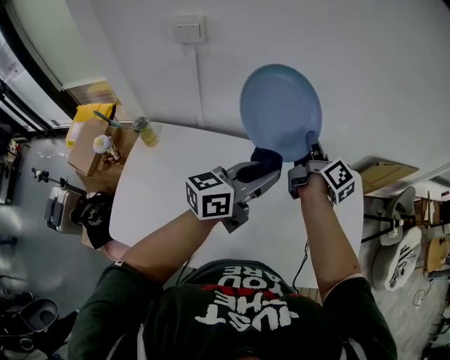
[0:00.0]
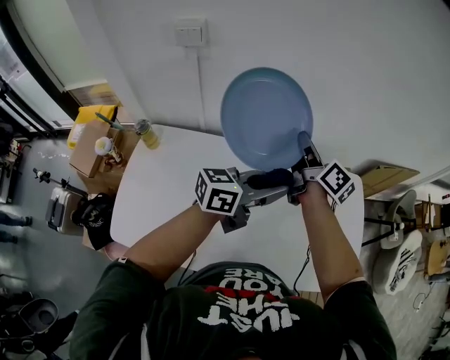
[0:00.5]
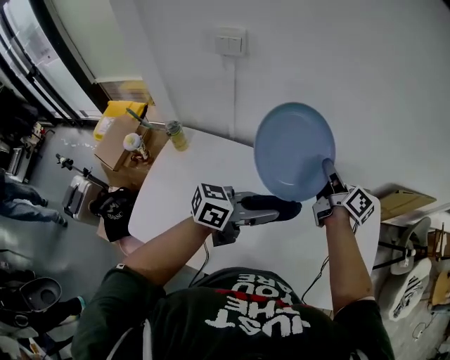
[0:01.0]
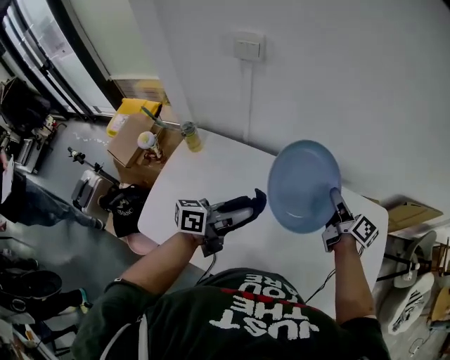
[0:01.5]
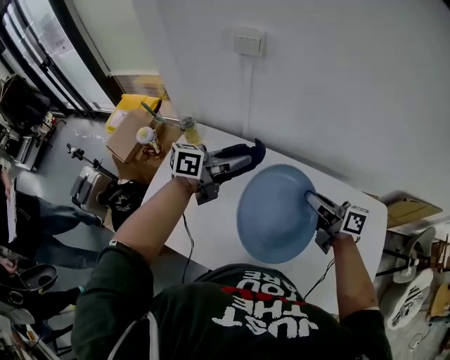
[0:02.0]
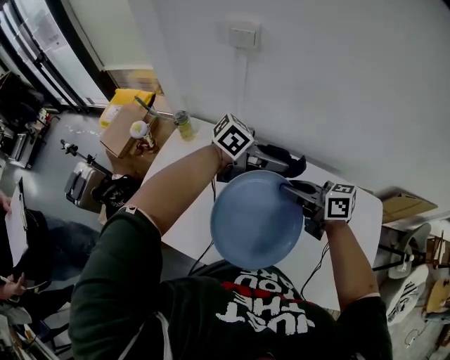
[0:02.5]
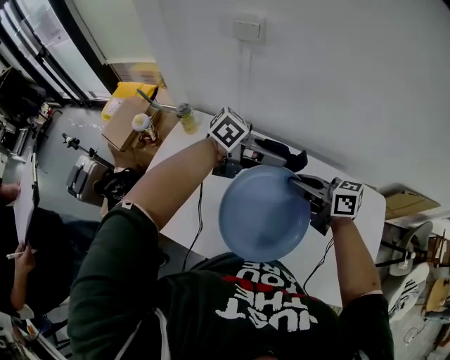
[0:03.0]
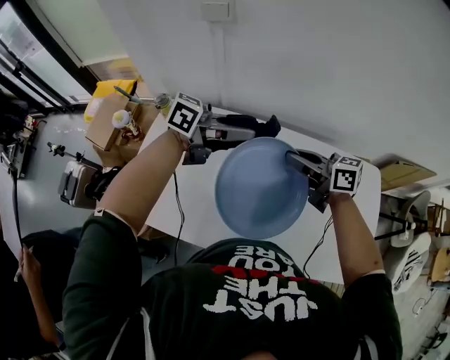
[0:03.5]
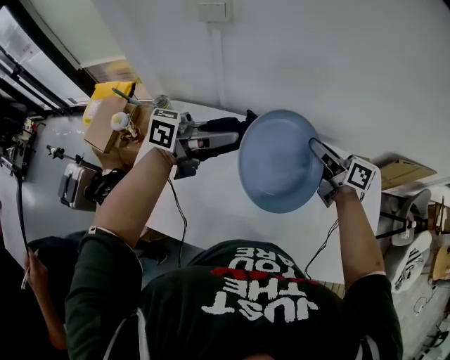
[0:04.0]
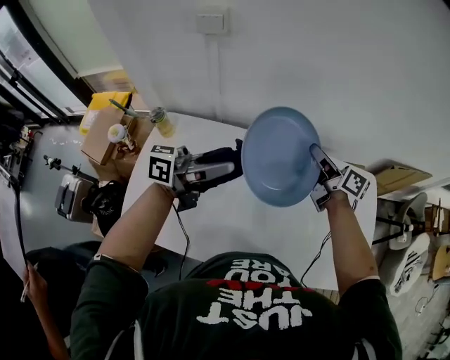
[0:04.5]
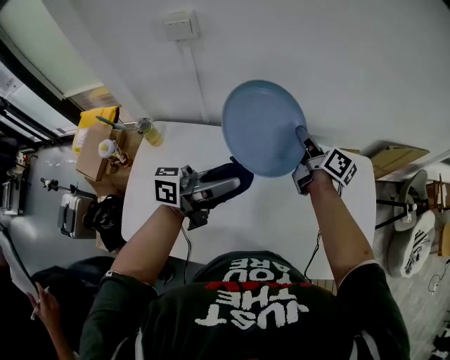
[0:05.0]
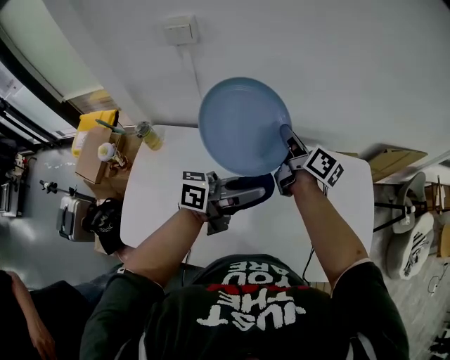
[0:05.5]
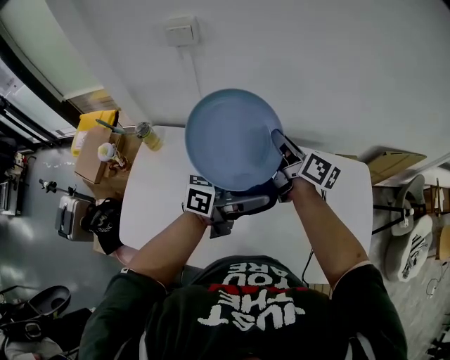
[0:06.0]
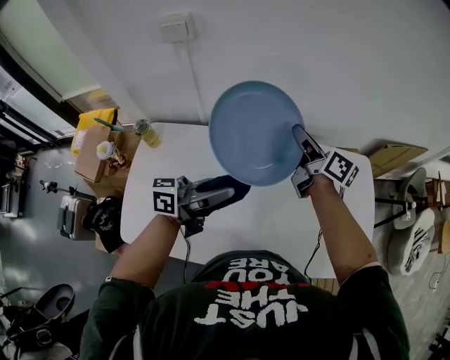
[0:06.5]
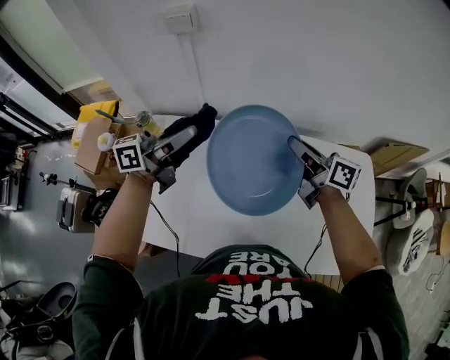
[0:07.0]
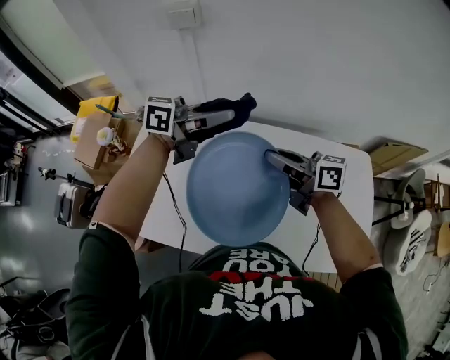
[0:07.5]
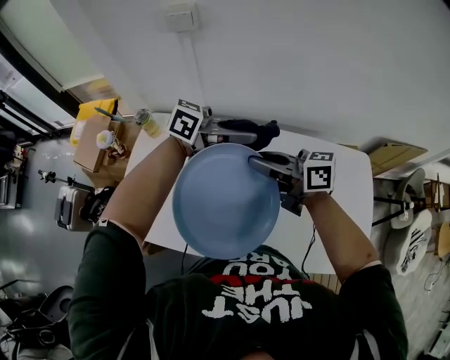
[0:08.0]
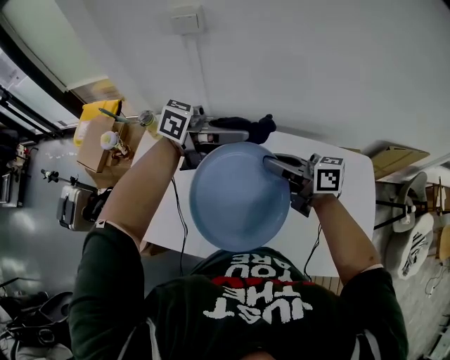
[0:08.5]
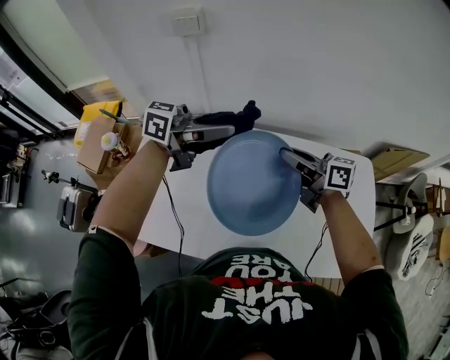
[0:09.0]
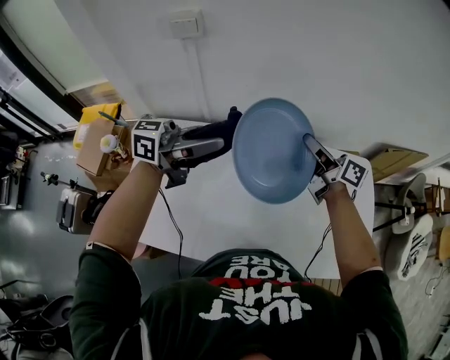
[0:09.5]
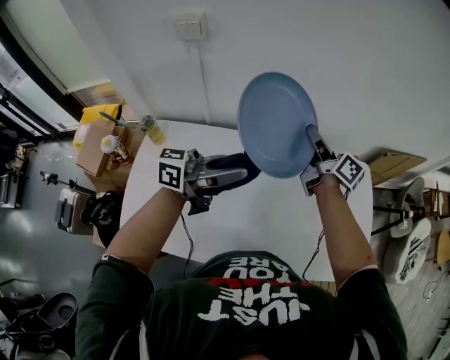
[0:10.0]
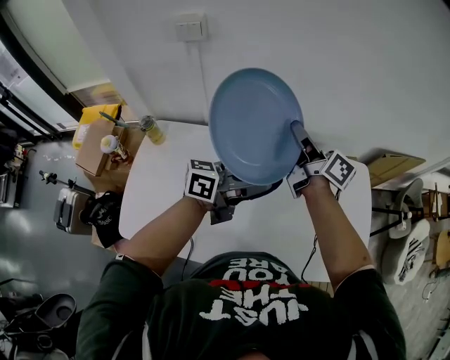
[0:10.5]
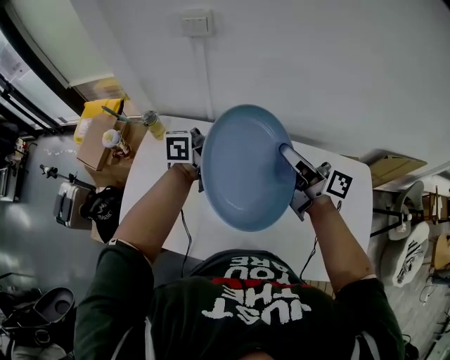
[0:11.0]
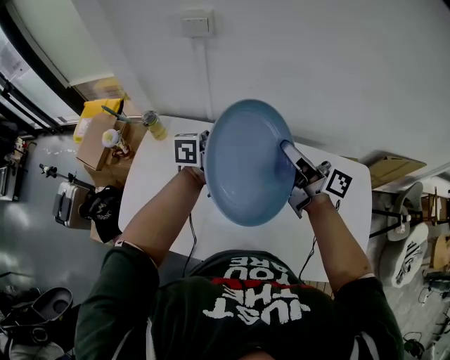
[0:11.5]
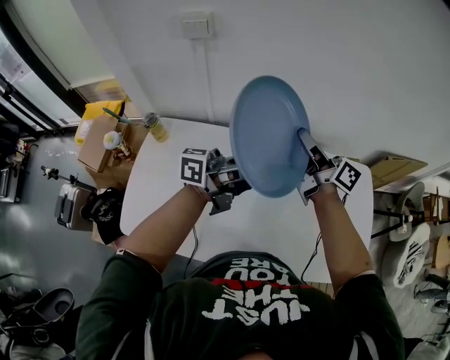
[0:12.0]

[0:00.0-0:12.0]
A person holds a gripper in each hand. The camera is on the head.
0:00.0 to 0:02.0: The left gripper moves roughly 20 cm. Meanwhile the right gripper changes place by roughly 15 cm, and turns by approximately 60 degrees.
0:02.0 to 0:04.0: The right gripper moves about 10 cm.
0:04.0 to 0:06.0: The right gripper moves approximately 5 cm, and changes its angle by roughly 20 degrees, while the left gripper changes place by approximately 15 cm.
0:06.0 to 0:08.0: The right gripper changes place by roughly 15 cm, and changes its angle by approximately 40 degrees.
0:08.0 to 0:10.0: The right gripper moves some 20 cm, and swivels approximately 50 degrees, while the left gripper moves approximately 10 cm.
0:10.0 to 0:12.0: The left gripper moves left and right over some 10 cm, changing direction 2 times.

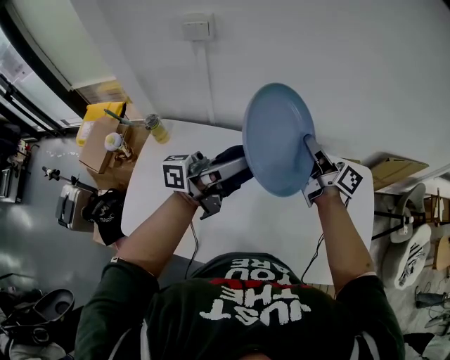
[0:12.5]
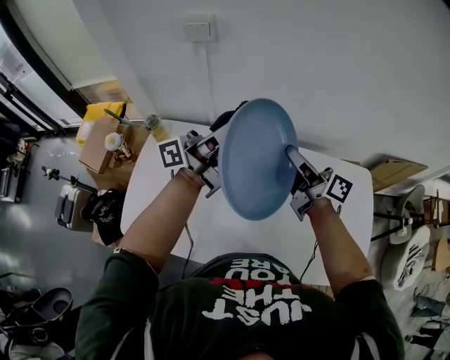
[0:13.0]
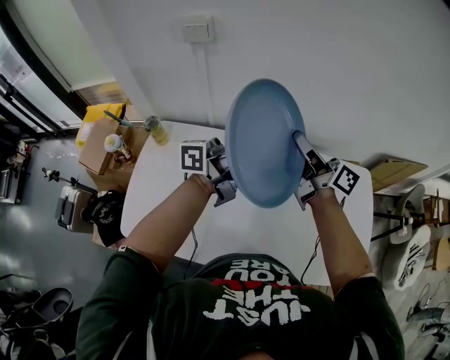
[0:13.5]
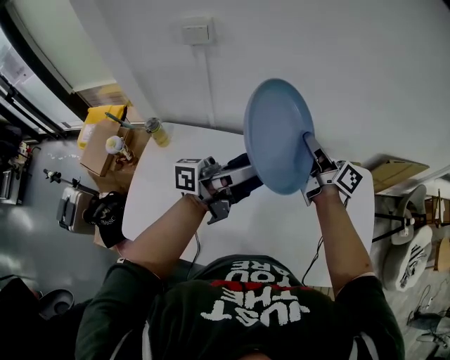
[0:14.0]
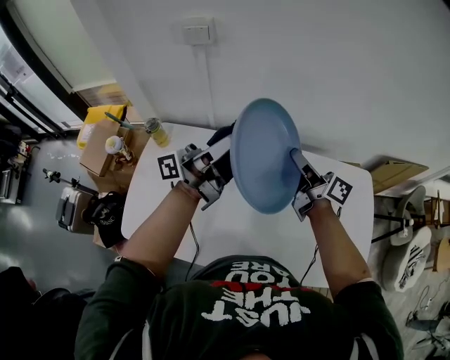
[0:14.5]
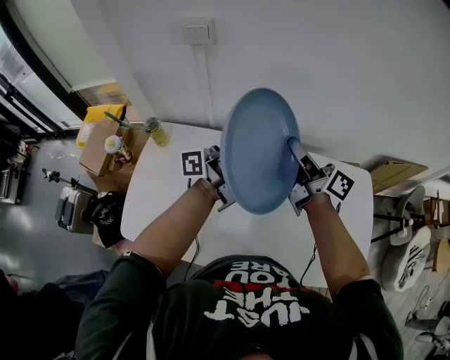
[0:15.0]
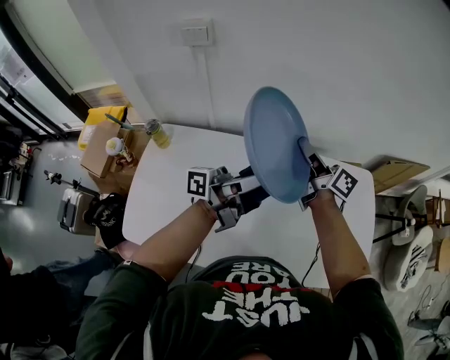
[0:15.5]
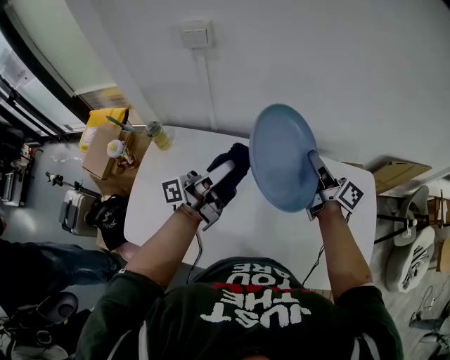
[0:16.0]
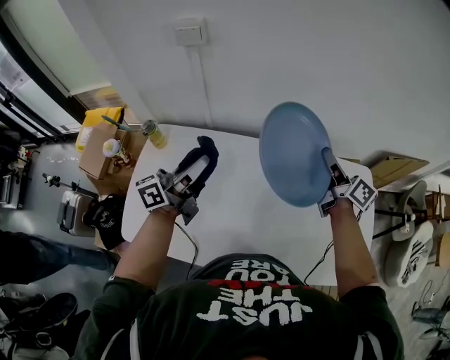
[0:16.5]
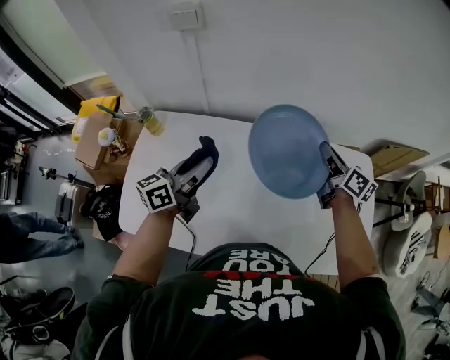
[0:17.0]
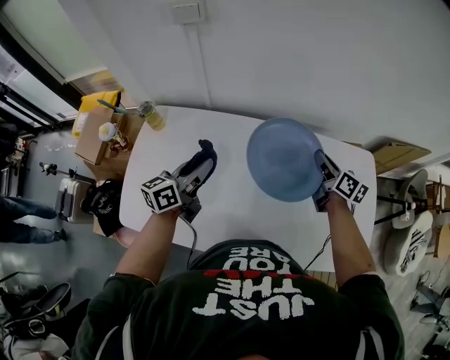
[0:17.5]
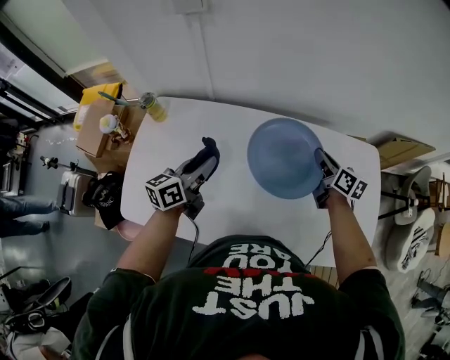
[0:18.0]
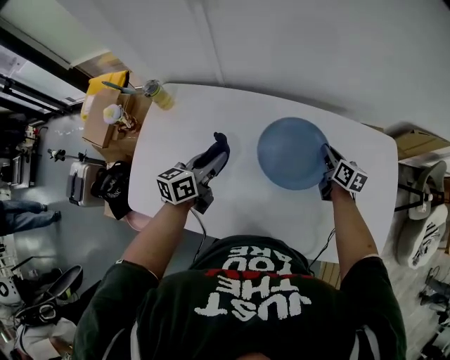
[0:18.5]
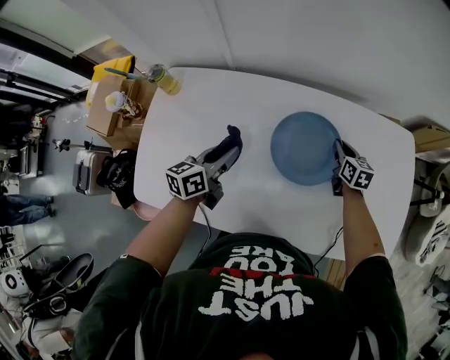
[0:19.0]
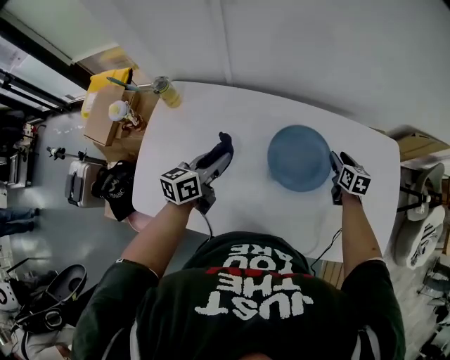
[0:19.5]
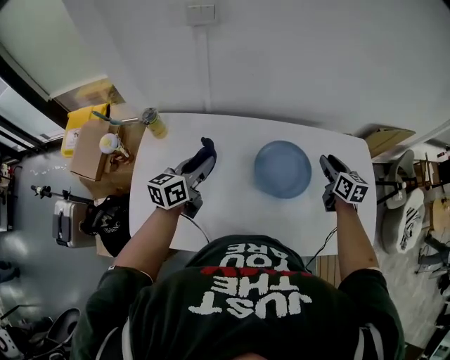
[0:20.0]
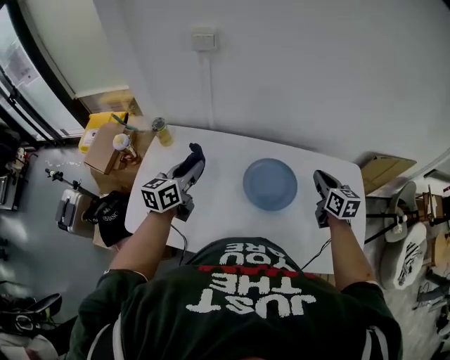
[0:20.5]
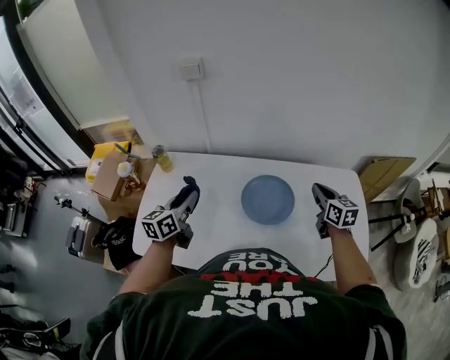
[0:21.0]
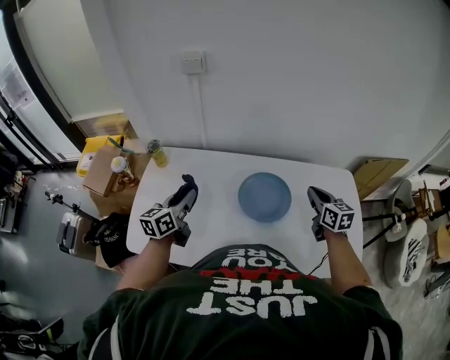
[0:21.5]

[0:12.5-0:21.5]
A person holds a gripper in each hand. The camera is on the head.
0:12.5 to 0:14.5: The right gripper goes forward and backward, about 5 cm each way, reversing 2 times; the left gripper moves left and right over about 5 cm, changing direction 2 times.
0:14.5 to 0:17.0: The right gripper goes approximately 10 cm to the right, and changes its angle by some 30 degrees. The left gripper shifts roughly 15 cm downward, travels to the right and back again, about 10 cm each way, and tilts its fingers some 40 degrees downward.
0:17.0 to 0:19.5: The left gripper travels downward by some 15 cm; the right gripper travels downward by about 20 cm, tips its fingers downward by roughly 30 degrees, and opens.
0:19.5 to 0:21.5: The left gripper travels upward by roughly 10 cm; the right gripper moves upward and backward, about 20 cm, and closes up.

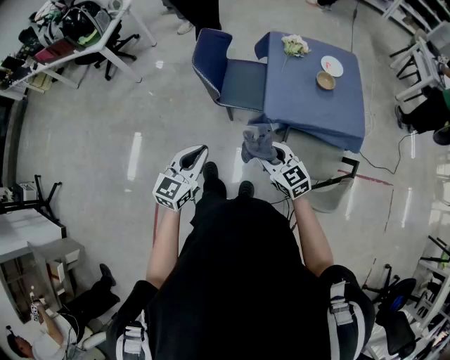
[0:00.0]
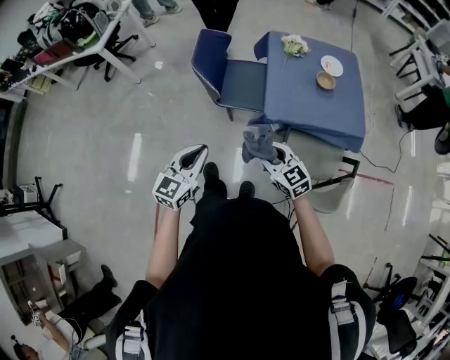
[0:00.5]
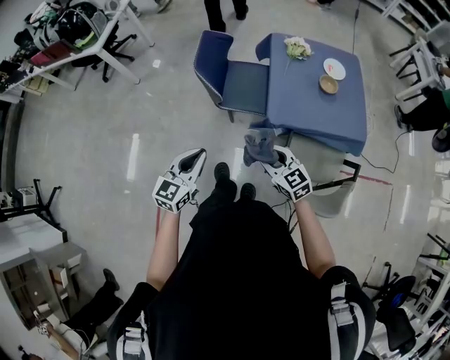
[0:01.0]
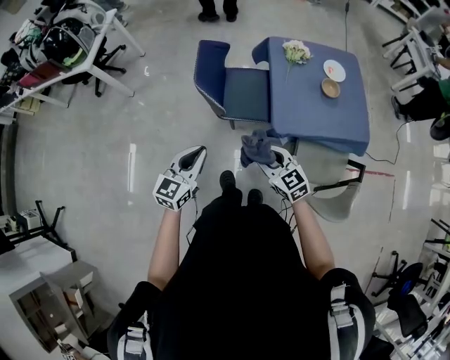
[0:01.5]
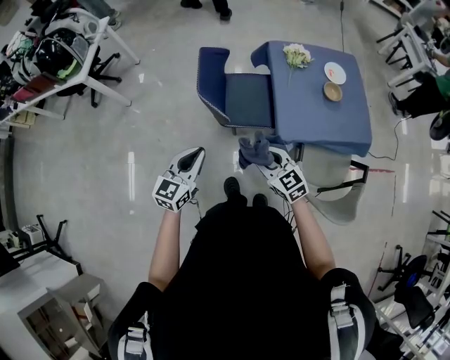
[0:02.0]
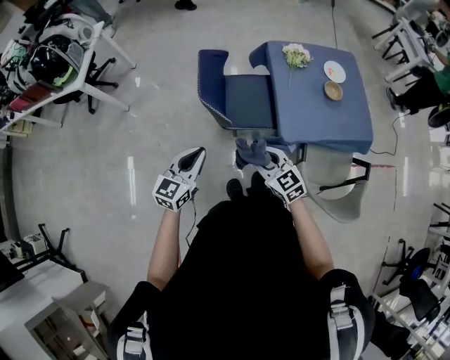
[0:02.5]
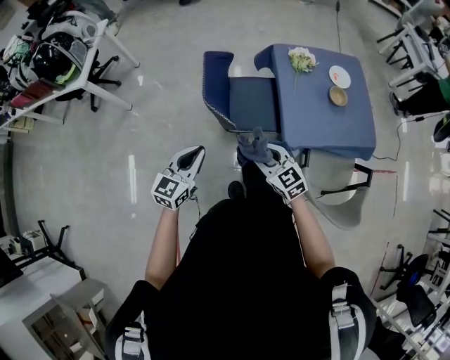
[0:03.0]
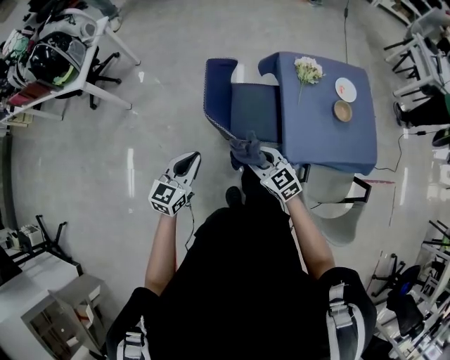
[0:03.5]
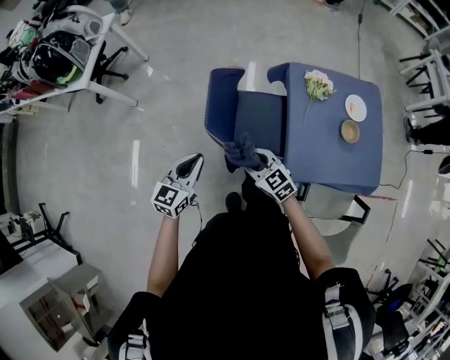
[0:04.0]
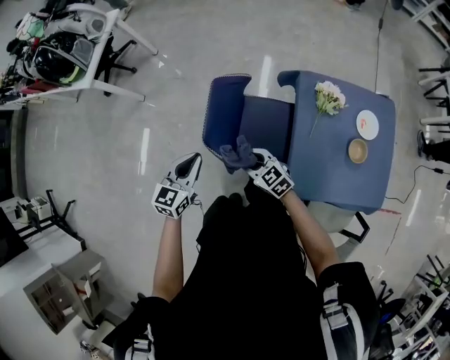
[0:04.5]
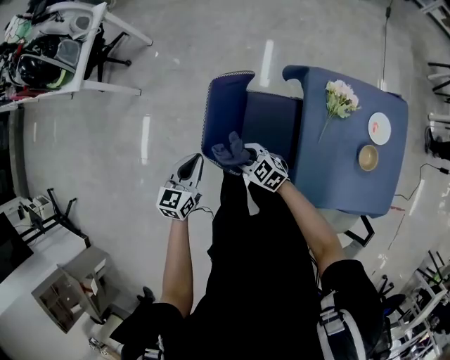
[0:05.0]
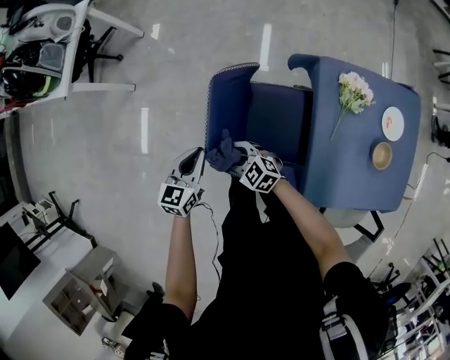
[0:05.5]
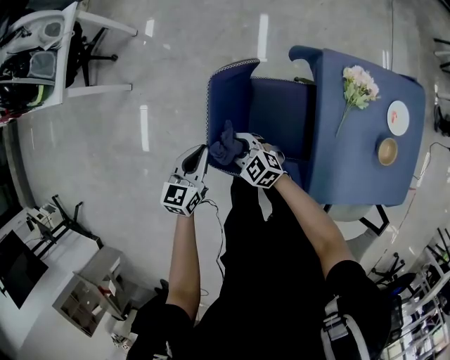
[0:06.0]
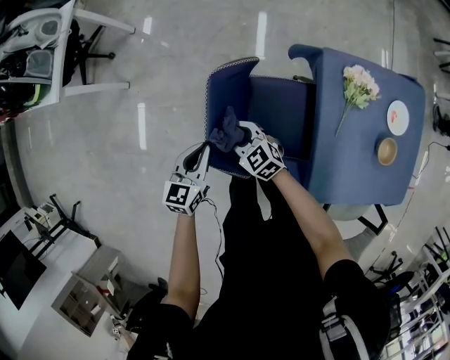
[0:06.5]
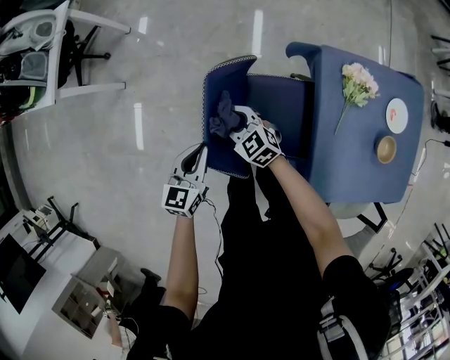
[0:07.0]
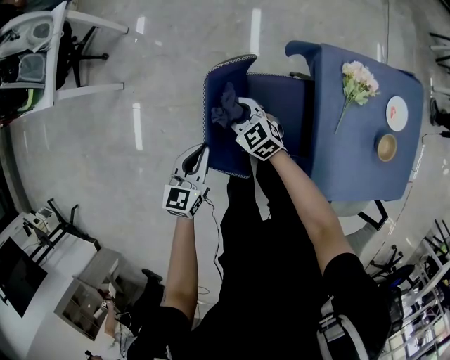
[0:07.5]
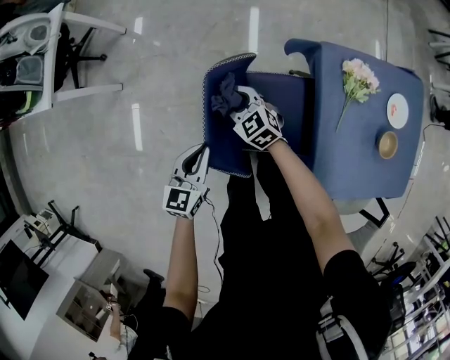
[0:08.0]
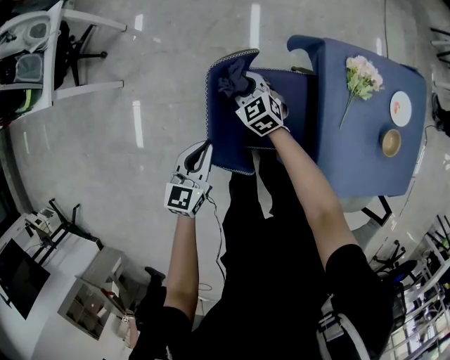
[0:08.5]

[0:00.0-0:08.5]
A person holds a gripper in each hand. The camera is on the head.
0:00.0 to 0:02.0: Both grippers move forward and to the left, roughly 20 cm.
0:02.0 to 0:04.0: The two grippers go roughly 20 cm forward.
0:04.0 to 0:06.5: The two grippers go roughly 30 cm forward and downward.
0:06.5 to 0:08.5: The right gripper heads forward, covering about 15 cm.
